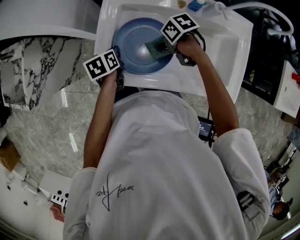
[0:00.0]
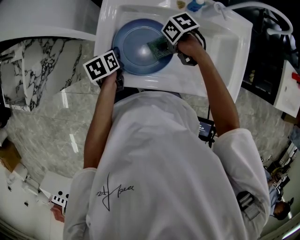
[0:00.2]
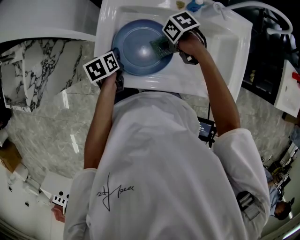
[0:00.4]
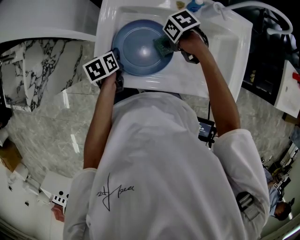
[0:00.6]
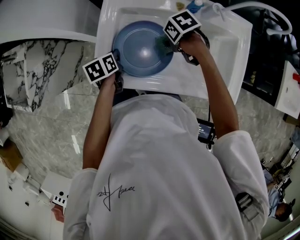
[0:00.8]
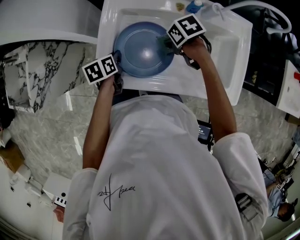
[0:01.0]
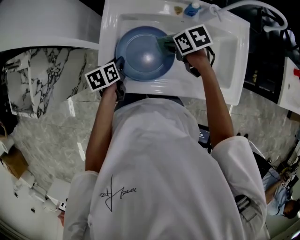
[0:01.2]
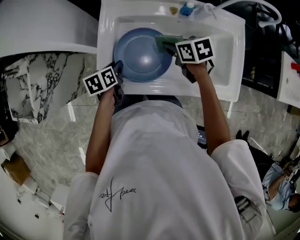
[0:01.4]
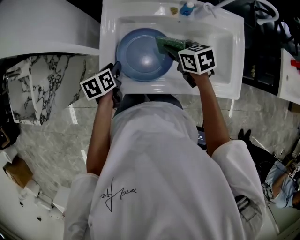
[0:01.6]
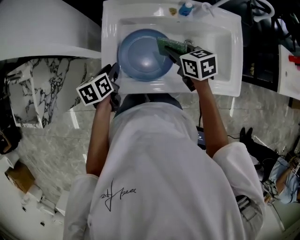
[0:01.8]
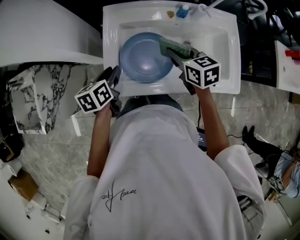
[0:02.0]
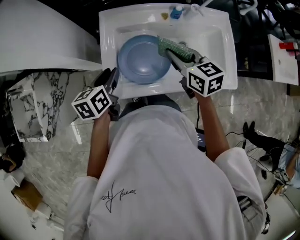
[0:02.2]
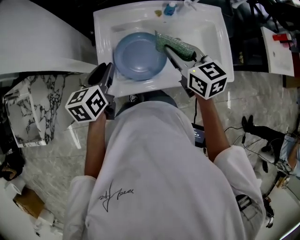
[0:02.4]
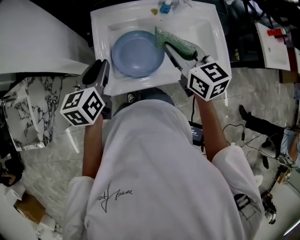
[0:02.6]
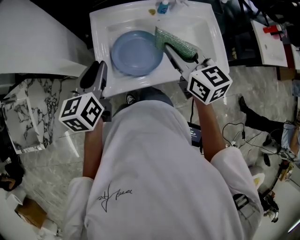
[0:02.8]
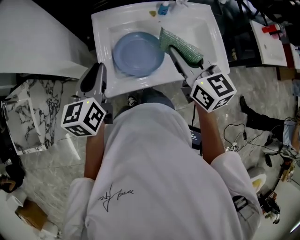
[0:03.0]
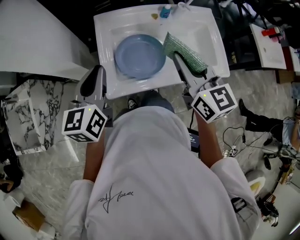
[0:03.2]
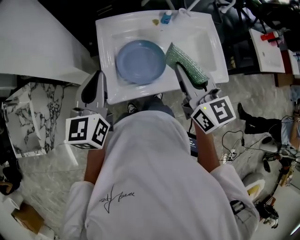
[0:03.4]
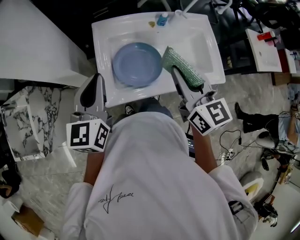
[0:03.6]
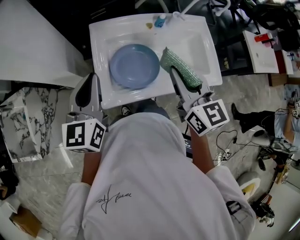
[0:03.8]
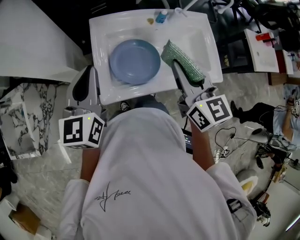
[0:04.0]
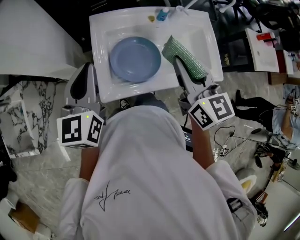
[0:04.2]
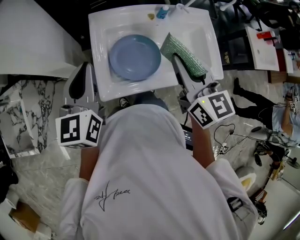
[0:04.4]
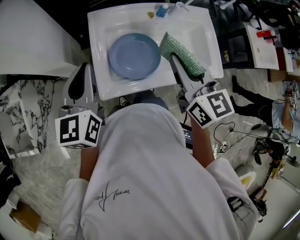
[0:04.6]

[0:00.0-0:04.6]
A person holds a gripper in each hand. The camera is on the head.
0:00.0 to 0:01.6: The right gripper goes some 10 cm upward, and swivels about 40 degrees.
0:01.6 to 0:03.0: The right gripper travels upward and backward by roughly 25 cm, and rotates roughly 40 degrees, while the left gripper heads upward, covering approximately 20 cm, and tilts its fingers approximately 30 degrees upward.
0:03.0 to 0:04.6: The left gripper changes place by approximately 5 cm.

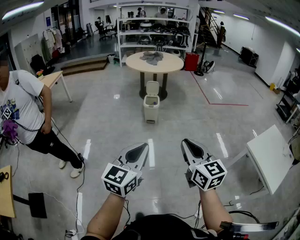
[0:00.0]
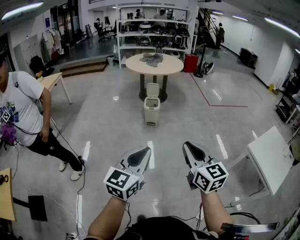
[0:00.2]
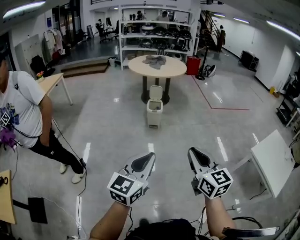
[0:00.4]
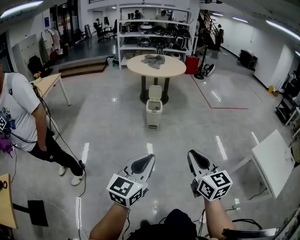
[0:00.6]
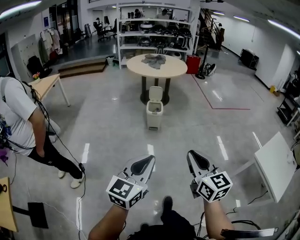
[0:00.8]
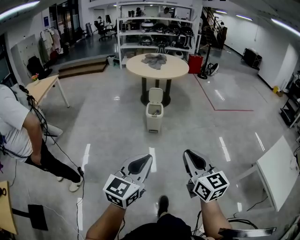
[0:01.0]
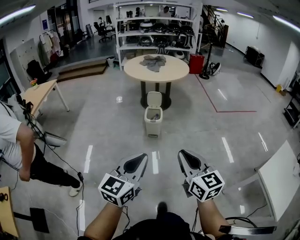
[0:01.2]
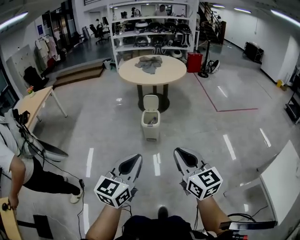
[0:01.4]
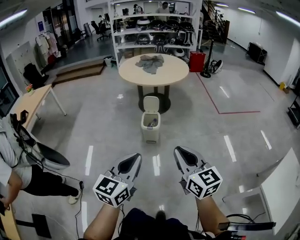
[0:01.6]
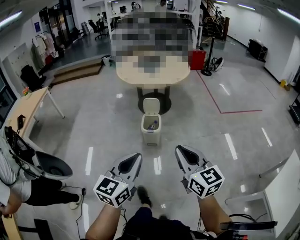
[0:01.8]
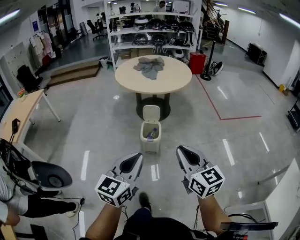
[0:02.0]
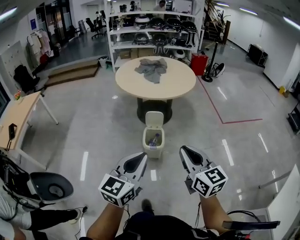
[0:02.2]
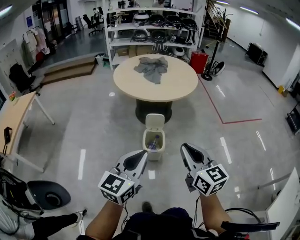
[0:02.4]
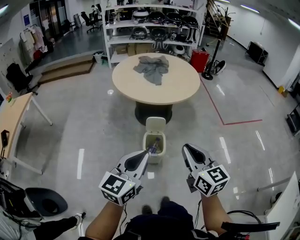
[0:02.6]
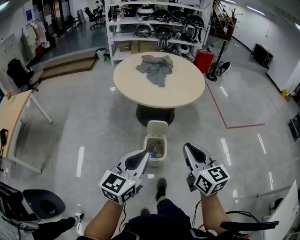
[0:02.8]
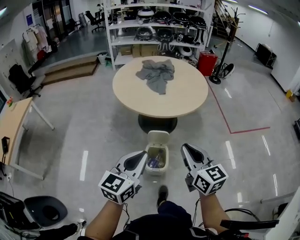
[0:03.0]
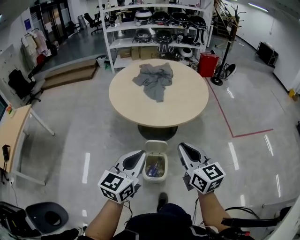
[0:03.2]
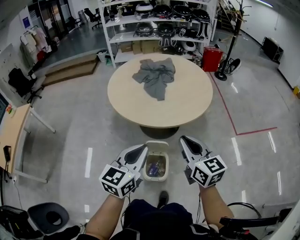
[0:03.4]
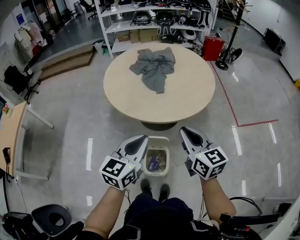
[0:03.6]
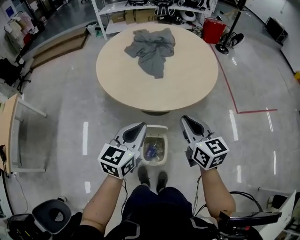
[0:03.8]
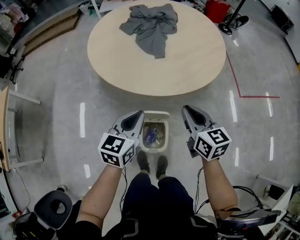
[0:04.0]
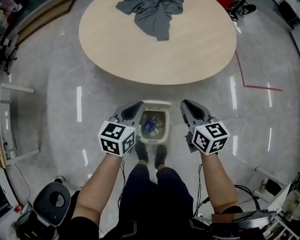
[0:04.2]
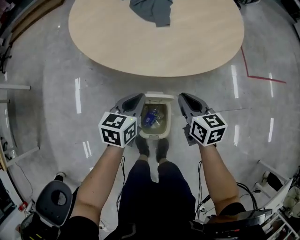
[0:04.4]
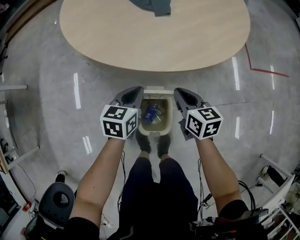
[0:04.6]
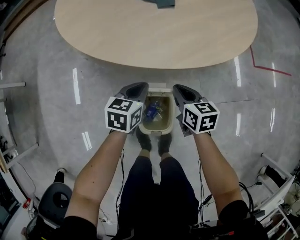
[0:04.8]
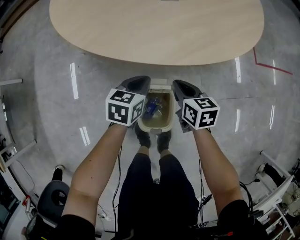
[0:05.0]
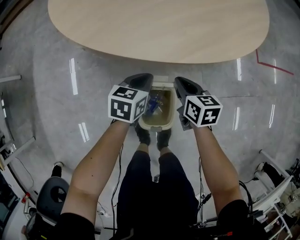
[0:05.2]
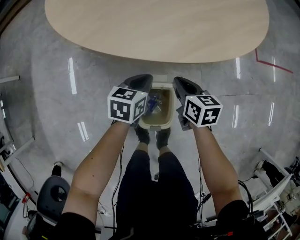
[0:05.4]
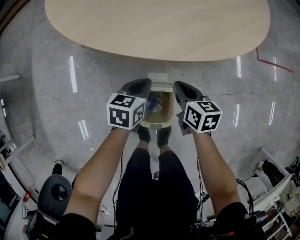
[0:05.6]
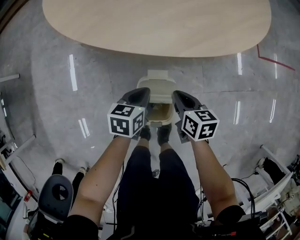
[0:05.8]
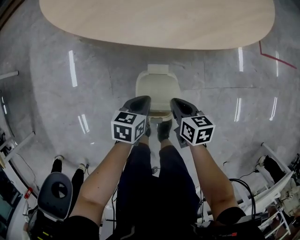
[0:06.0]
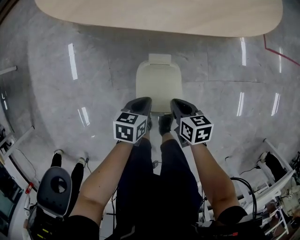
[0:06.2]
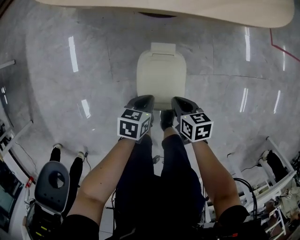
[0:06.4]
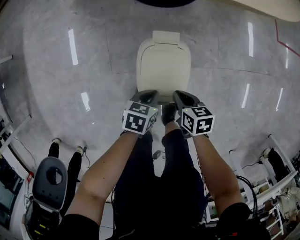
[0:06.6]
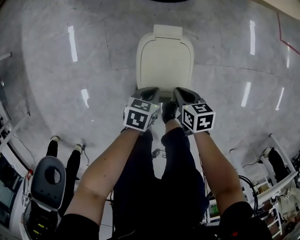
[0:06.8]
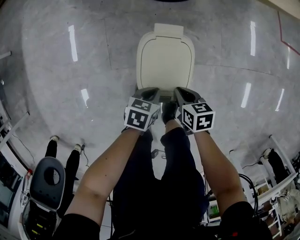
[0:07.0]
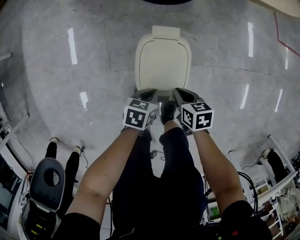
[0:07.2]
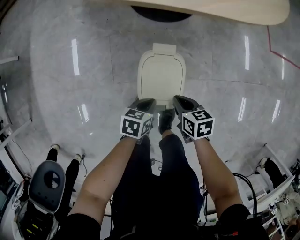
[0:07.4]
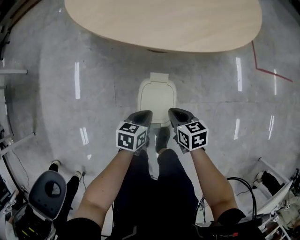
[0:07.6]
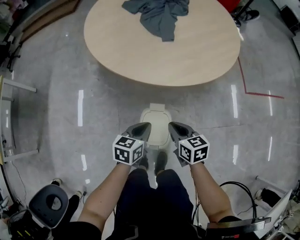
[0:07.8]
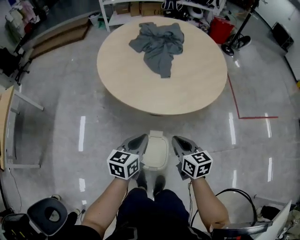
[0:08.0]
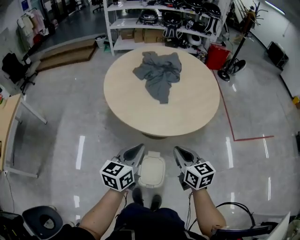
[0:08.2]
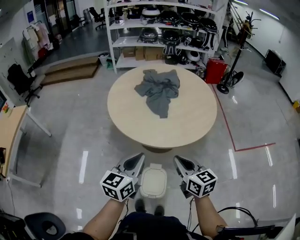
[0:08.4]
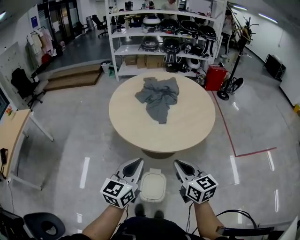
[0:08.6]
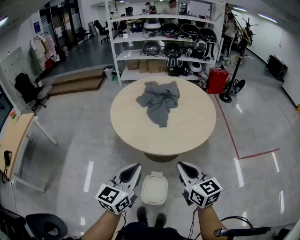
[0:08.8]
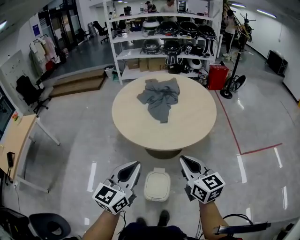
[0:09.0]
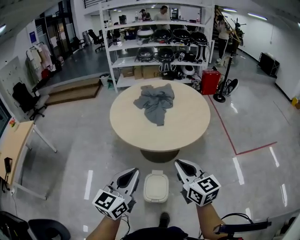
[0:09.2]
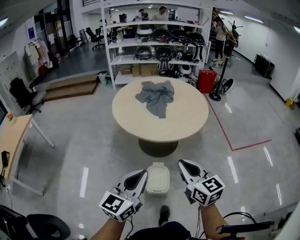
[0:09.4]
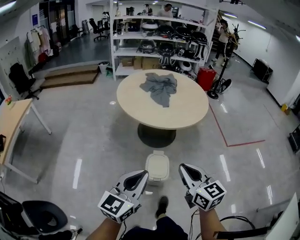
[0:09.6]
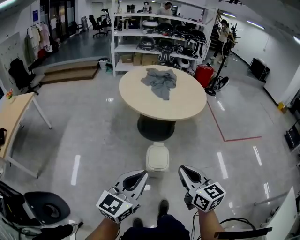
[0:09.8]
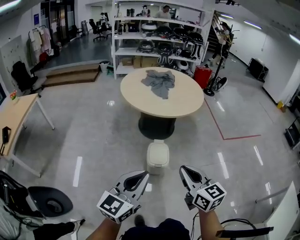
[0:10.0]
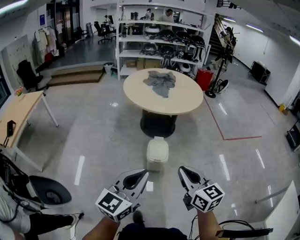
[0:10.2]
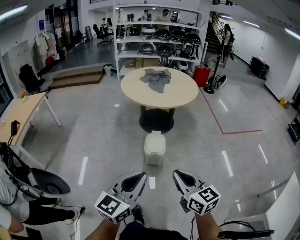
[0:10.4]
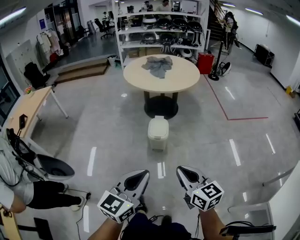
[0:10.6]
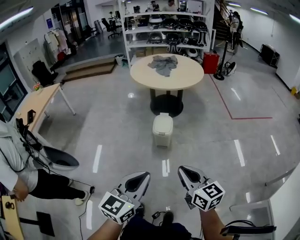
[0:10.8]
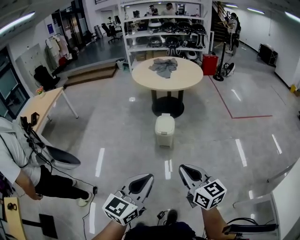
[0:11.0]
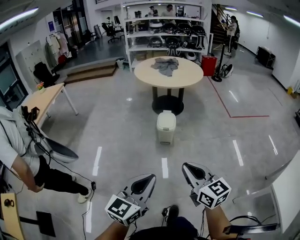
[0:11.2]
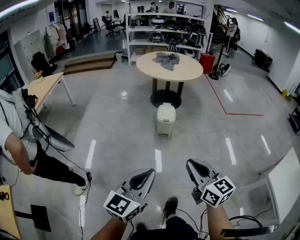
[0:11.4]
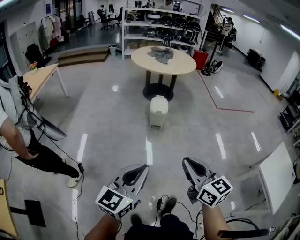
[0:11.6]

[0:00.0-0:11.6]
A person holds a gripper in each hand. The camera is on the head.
0:00.0 to 0:01.4: The two grippers go roughly 30 cm forward.
0:01.4 to 0:02.8: Both grippers are carried forward, some 50 cm.
0:02.8 to 0:04.4: The two grippers go approximately 50 cm forward and downward. The right gripper changes its angle by approximately 30 degrees. The left gripper changes its angle by some 30 degrees.
0:04.4 to 0:05.8: The two grippers go about 15 cm downward.
0:05.8 to 0:07.2: The two grippers go some 25 cm downward and backward.
0:07.2 to 0:08.8: Both grippers travel together upward, some 70 cm. The right gripper angles its fingers upward, by approximately 50 degrees; the left gripper points its fingers approximately 50 degrees further upward.
0:08.8 to 0:10.2: Both grippers are carried backward, roughly 50 cm.
0:10.2 to 0:11.6: Both grippers are carried backward, approximately 50 cm.

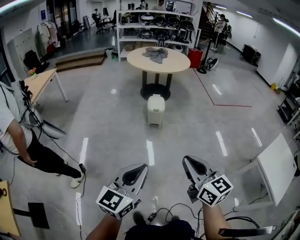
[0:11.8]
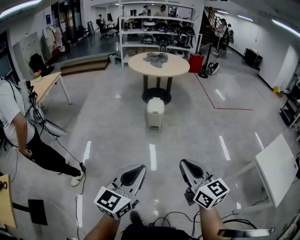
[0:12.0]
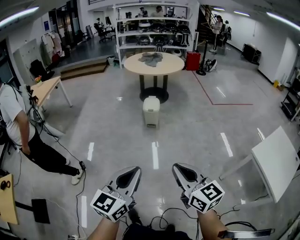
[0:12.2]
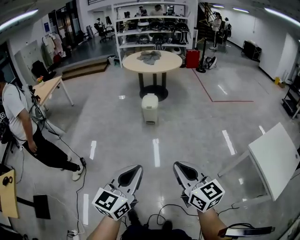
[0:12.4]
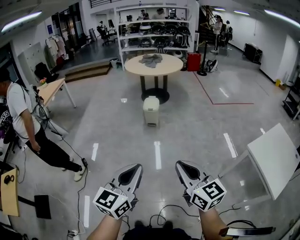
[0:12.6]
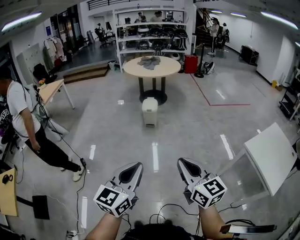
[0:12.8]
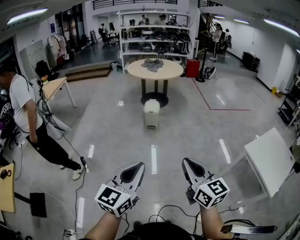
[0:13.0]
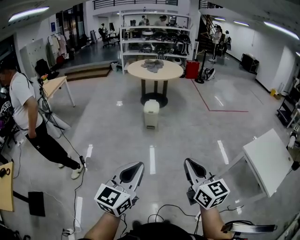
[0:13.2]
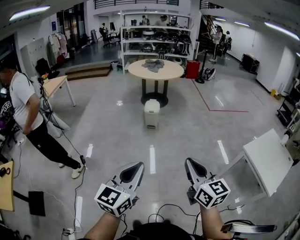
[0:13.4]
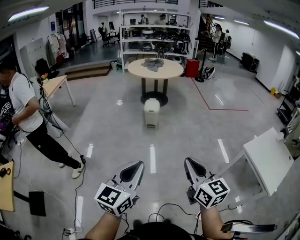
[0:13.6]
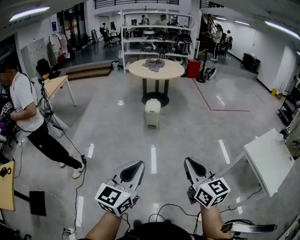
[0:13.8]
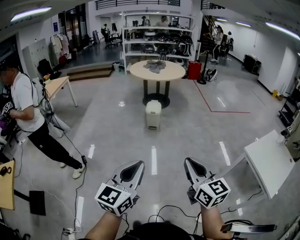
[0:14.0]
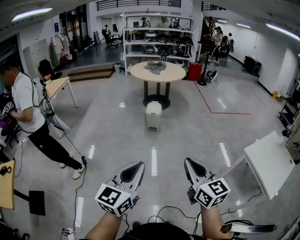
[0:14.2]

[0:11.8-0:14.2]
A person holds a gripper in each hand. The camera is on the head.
0:11.8 to 0:13.0: Both grippers move backward and to the right, roughly 25 cm.
0:13.0 to 0:14.2: There are only small adjustments of the grippers.

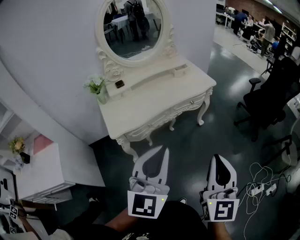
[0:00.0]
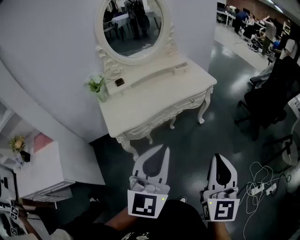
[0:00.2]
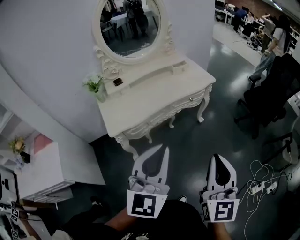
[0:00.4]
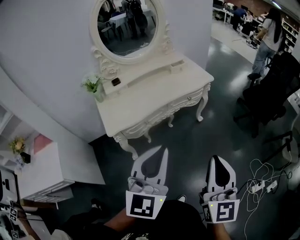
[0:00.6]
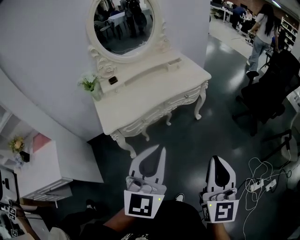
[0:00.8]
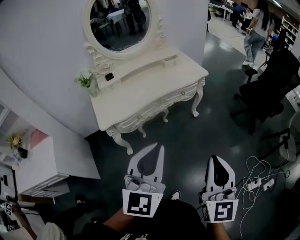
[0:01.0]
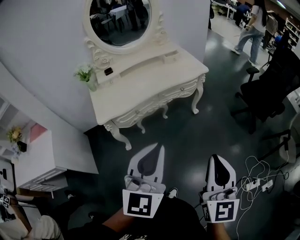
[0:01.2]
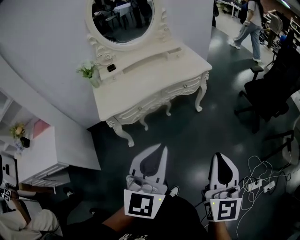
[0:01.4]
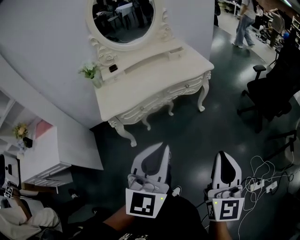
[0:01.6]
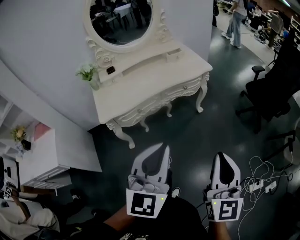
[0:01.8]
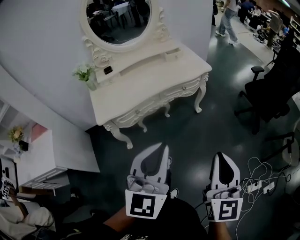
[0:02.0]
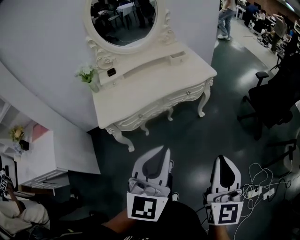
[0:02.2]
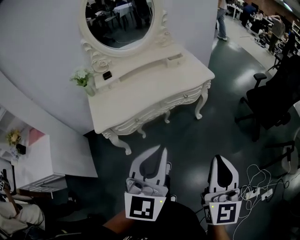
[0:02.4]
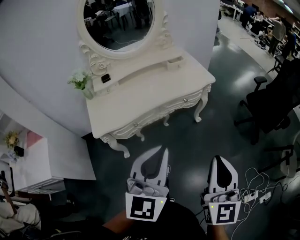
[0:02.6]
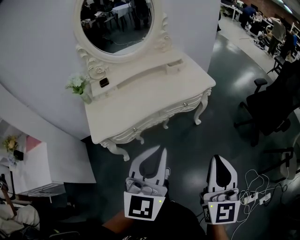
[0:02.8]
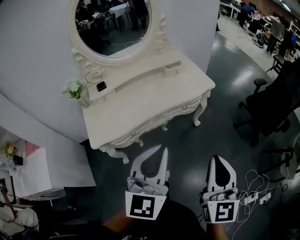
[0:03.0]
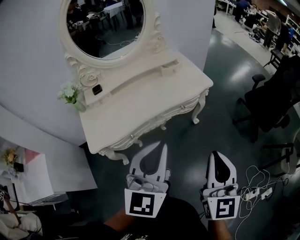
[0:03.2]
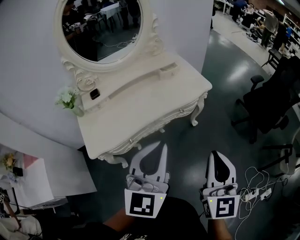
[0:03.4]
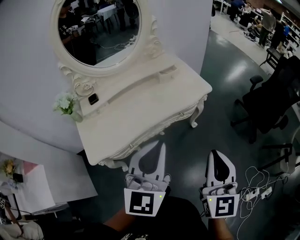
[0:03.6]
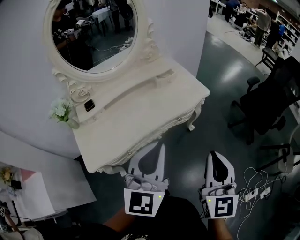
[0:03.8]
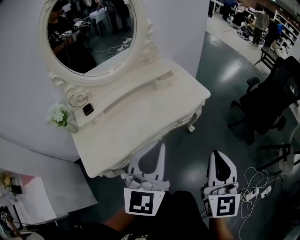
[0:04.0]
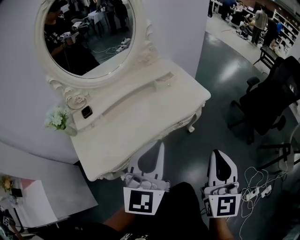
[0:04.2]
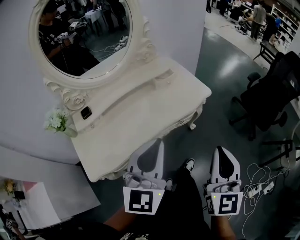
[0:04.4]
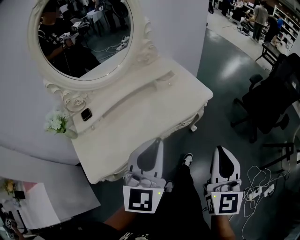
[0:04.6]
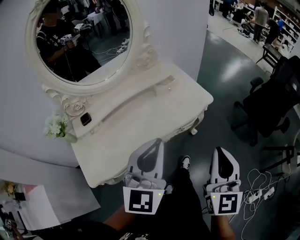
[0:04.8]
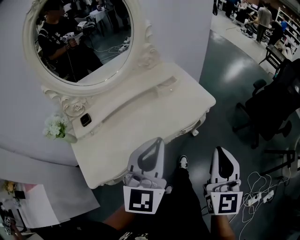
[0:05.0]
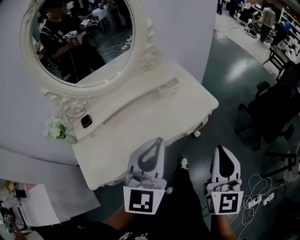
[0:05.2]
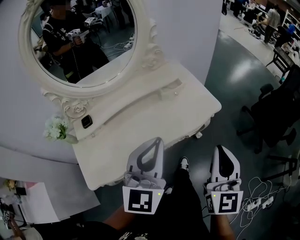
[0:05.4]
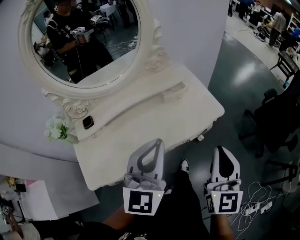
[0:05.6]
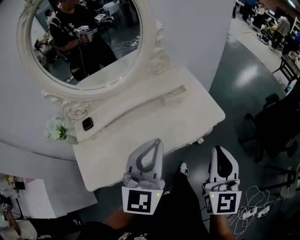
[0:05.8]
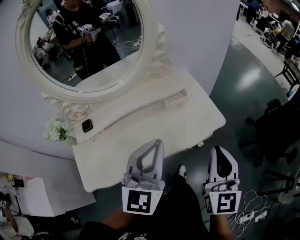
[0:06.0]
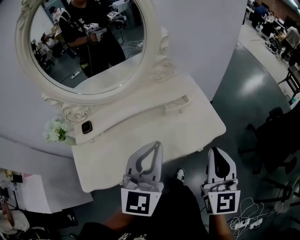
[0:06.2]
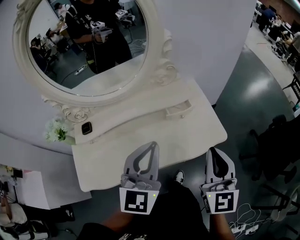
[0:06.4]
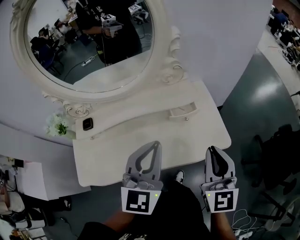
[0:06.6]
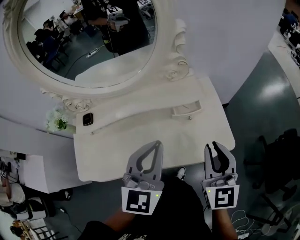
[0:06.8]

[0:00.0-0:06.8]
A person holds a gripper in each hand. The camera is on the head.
0:00.0 to 0:01.4: The two grippers go approximately 10 cm to the right.
0:01.4 to 0:02.8: The grippers both shift forward by some 15 cm.
0:02.8 to 0:04.0: Both grippers travel together forward, about 15 cm.
0:04.0 to 0:05.4: Both grippers travel together forward, about 15 cm.
0:05.4 to 0:06.8: Both grippers travel together forward, approximately 20 cm. The left gripper swivels approximately 20 degrees; the right gripper rotates roughly 30 degrees.
